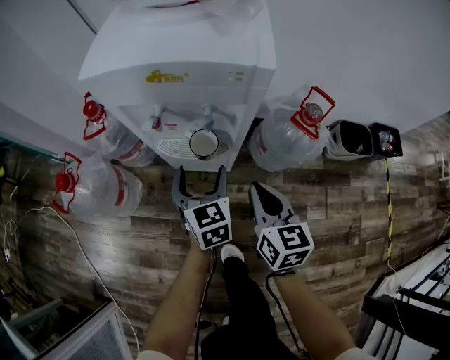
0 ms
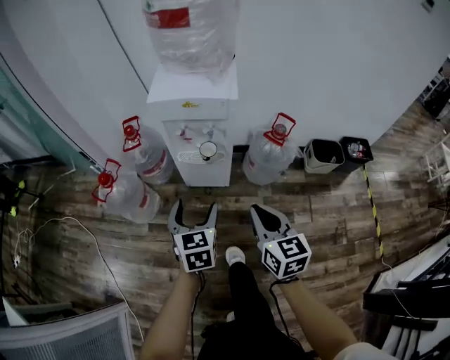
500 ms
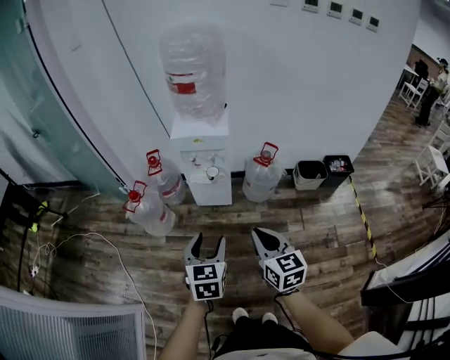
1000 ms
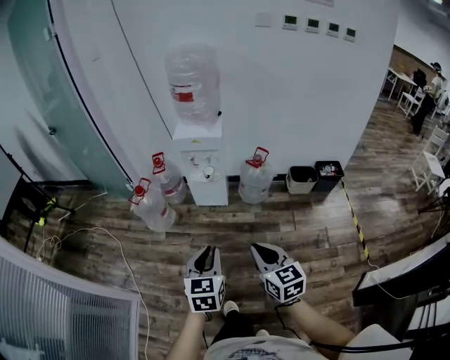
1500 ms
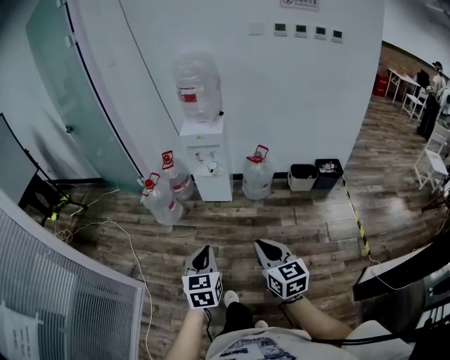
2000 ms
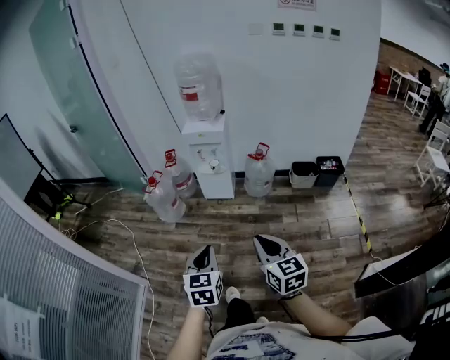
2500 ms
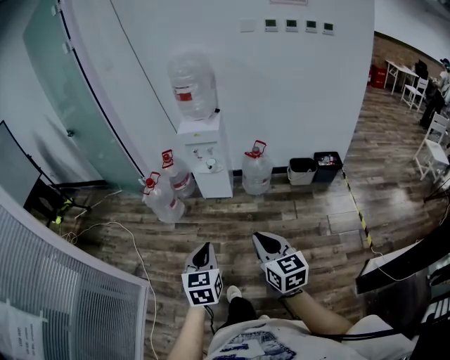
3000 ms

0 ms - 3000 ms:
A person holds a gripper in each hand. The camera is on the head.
0 ms - 1500 ms: The two grippers travel together, backward, approximately 60 cm. The two grippers go roughly 40 cm upward. The left gripper closes up.
1500 ms - 3000 ms: Both grippers move backward, approximately 15 cm.

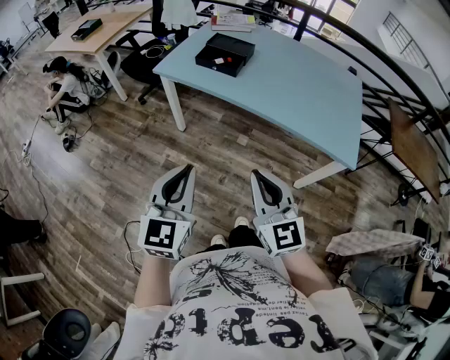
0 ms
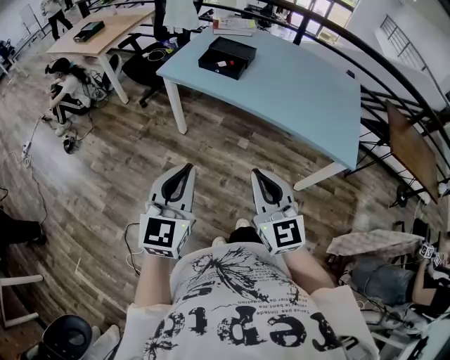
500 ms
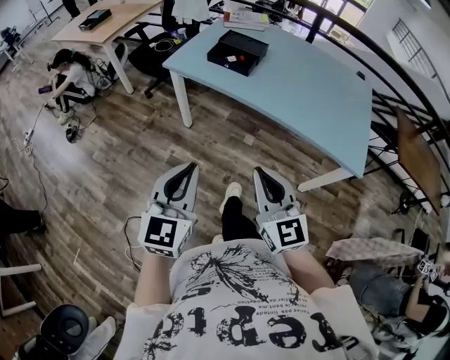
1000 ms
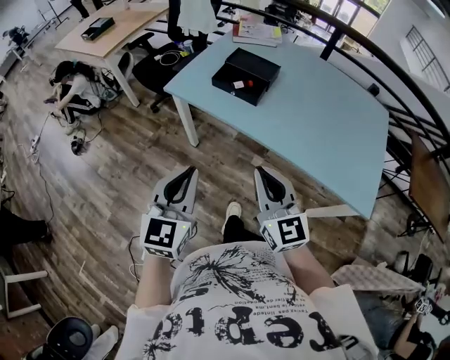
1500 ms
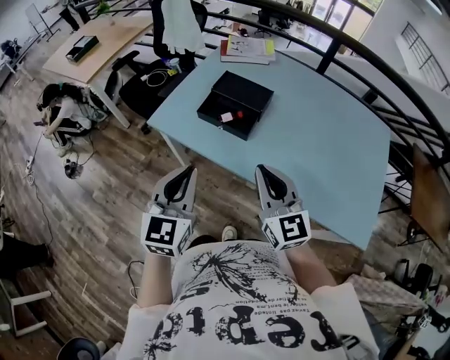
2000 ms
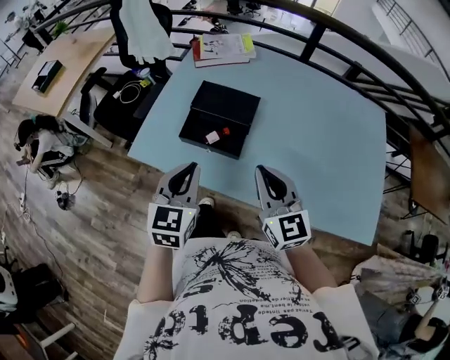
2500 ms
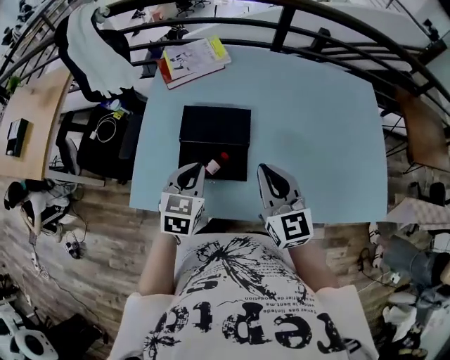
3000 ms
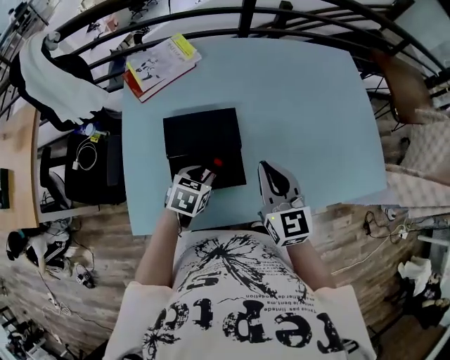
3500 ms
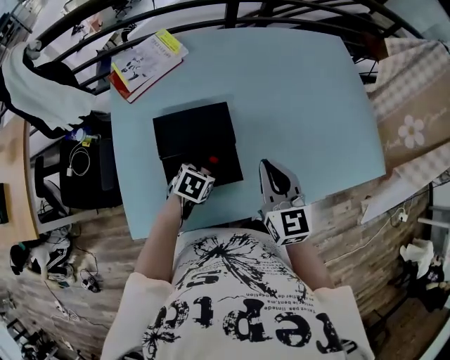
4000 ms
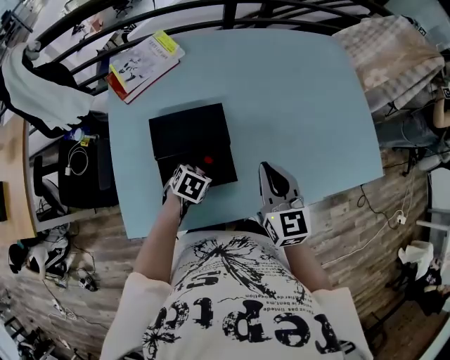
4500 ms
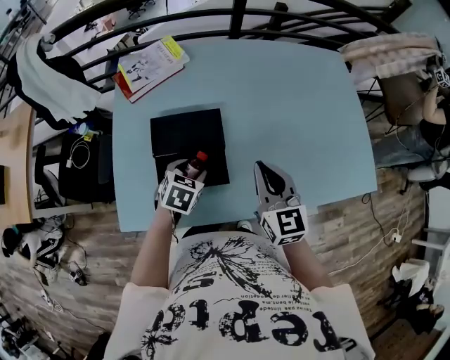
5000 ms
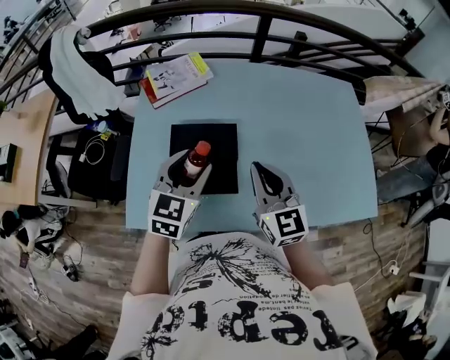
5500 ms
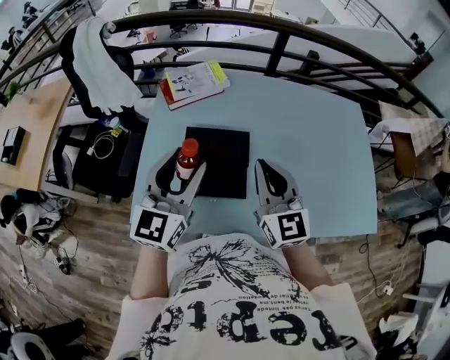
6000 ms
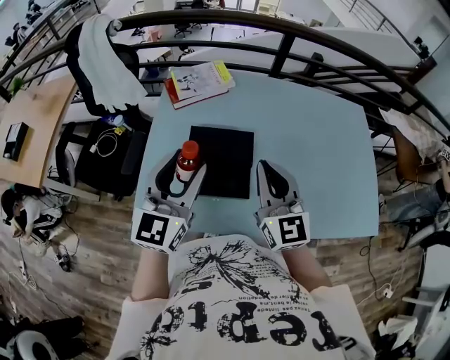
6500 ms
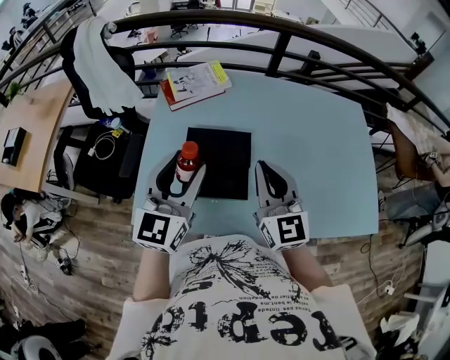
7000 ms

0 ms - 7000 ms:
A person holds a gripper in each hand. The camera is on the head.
0 ms - 2000 ms: The two grippers go about 40 cm forward.
2000 ms - 3500 ms: The left gripper moves some 40 cm, angles its fingers downward, by approximately 40 degrees, and opens up. The right gripper changes place by about 25 cm, and swivels roughly 40 degrees.
3500 ms - 5000 ms: The left gripper travels downward and back again, some 5 cm each way, and opens its fingers.
5000 ms - 7000 ms: The right gripper moves upward and to the left, approximately 15 cm. The left gripper goes approximately 25 cm upward, and tips its fingers upward by approximately 50 degrees.

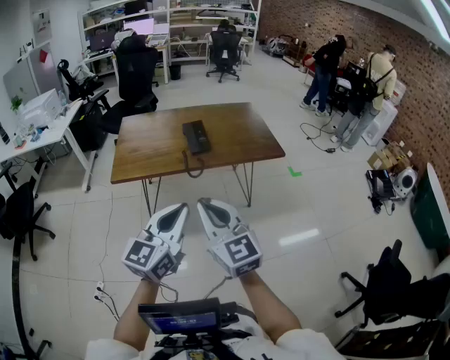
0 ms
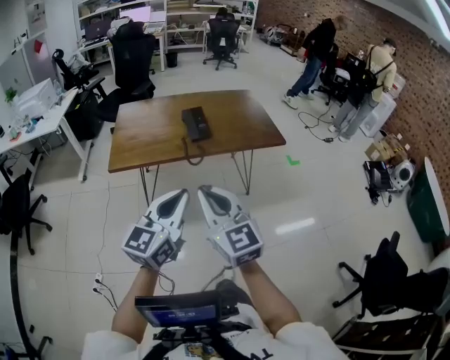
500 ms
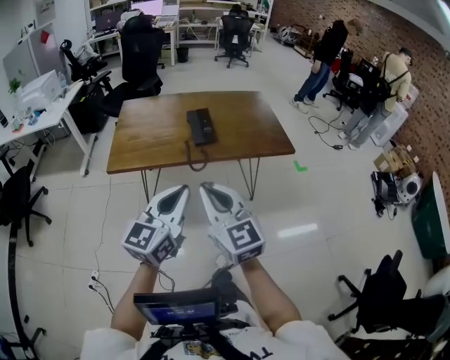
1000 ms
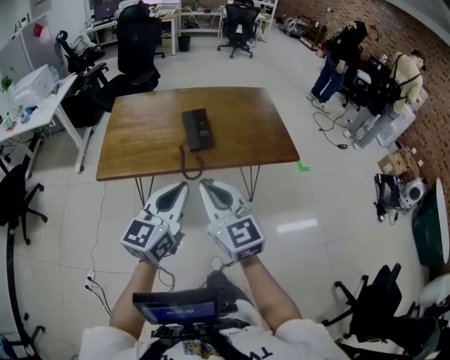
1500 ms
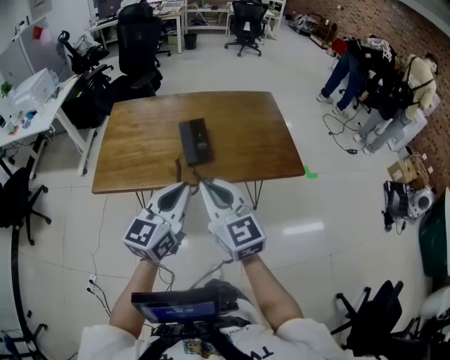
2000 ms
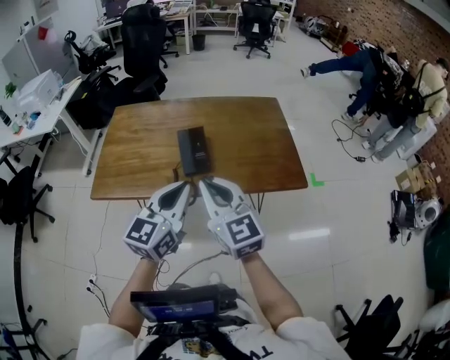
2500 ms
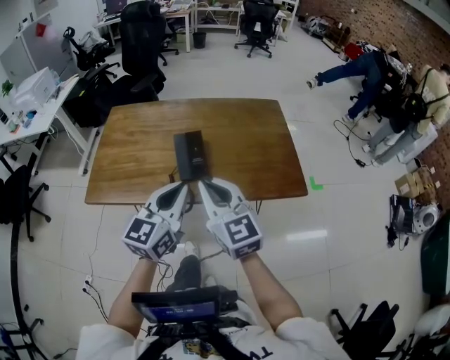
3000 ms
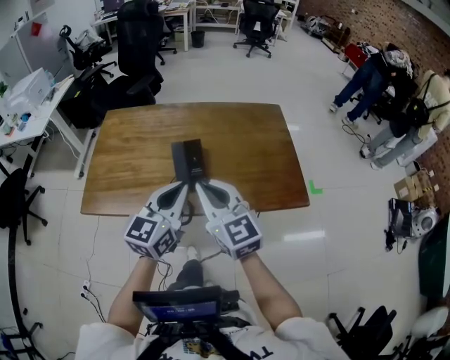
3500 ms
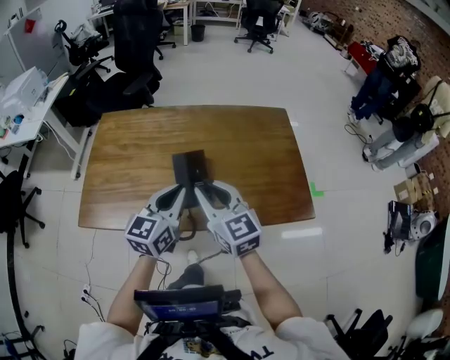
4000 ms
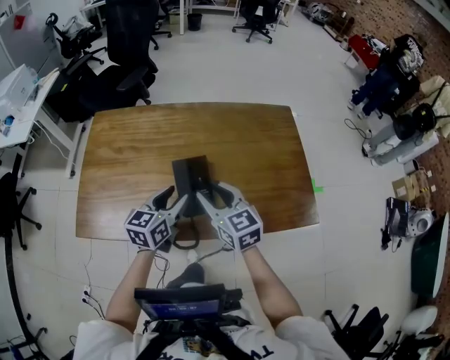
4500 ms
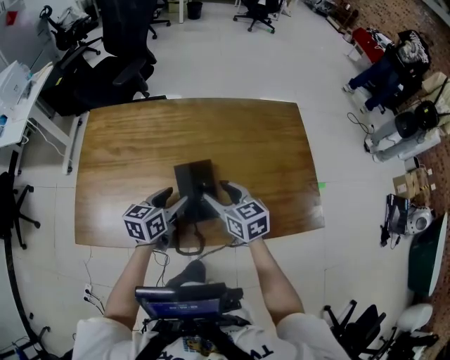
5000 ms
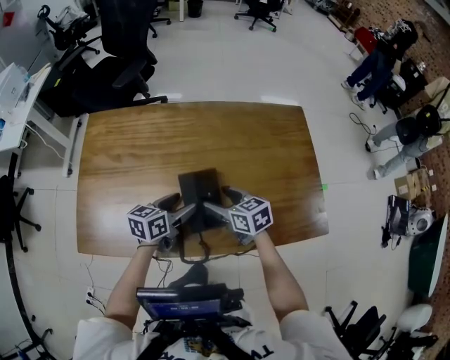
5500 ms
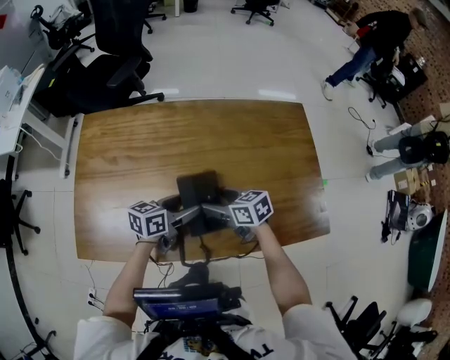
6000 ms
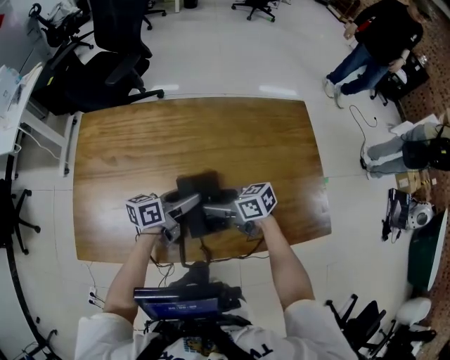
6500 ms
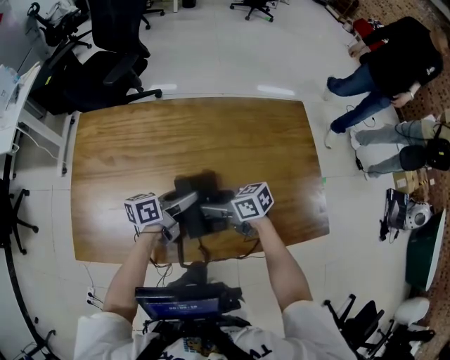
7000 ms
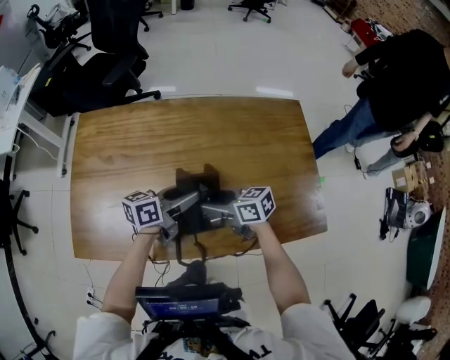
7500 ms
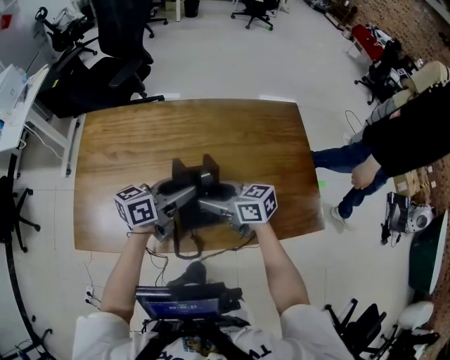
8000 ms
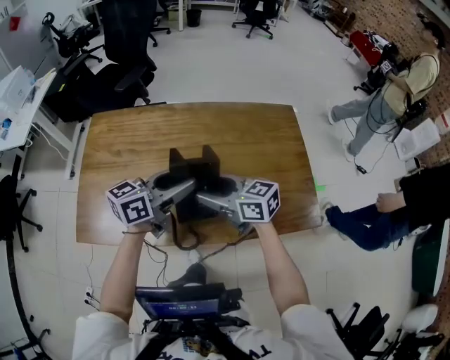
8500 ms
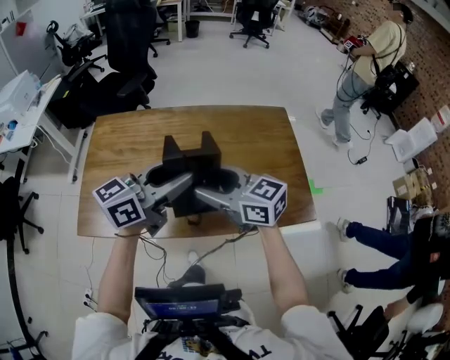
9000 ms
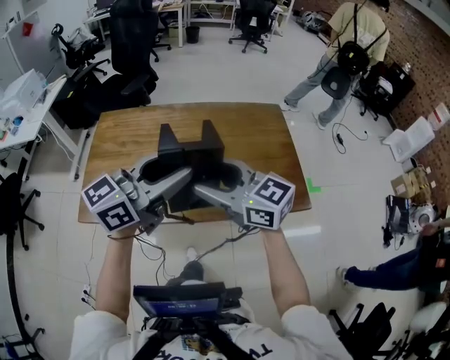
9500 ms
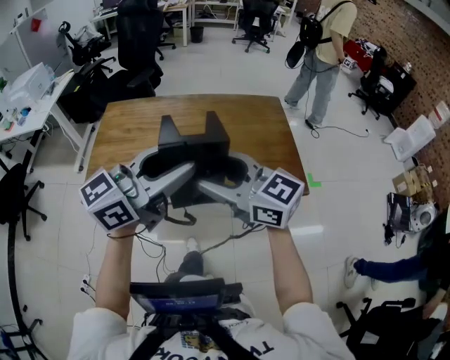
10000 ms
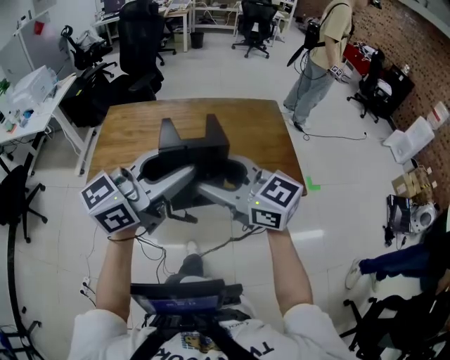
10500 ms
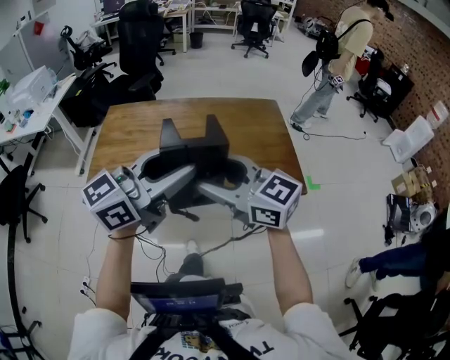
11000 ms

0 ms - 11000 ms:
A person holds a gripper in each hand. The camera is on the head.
0 ms - 2000 ms: Both grippers move forward, approximately 30 cm.
2000 ms - 3500 ms: Both grippers travel together forward, about 15 cm.
3500 ms - 5500 ms: The grippers both shift downward and forward by about 30 cm. The right gripper rotates approximately 40 degrees, and opens up, while the left gripper turns by approximately 40 degrees, and opens its fingers.
5500 ms - 7500 ms: The right gripper swivels roughly 20 degrees. Meanwhile the left gripper shifts by some 5 cm, and closes up.
7500 ms - 9000 ms: The left gripper moves upward and backward, some 25 cm, and swivels some 30 degrees, while the right gripper travels upward by roughly 20 cm, and rotates about 30 degrees.
9000 ms - 11000 ms: The two grippers go roughly 20 cm backward and upward.

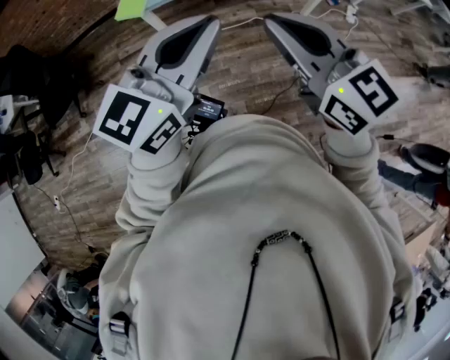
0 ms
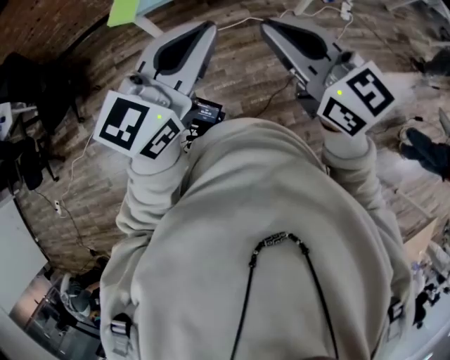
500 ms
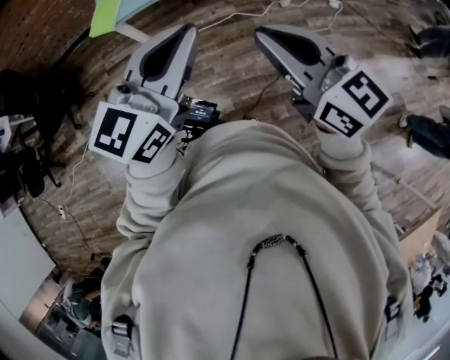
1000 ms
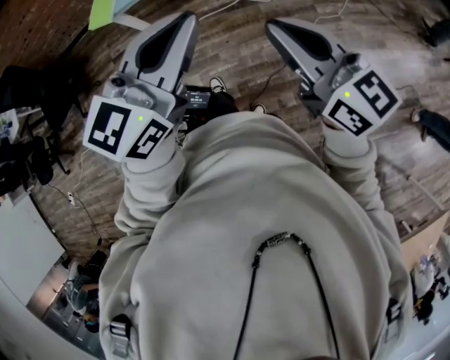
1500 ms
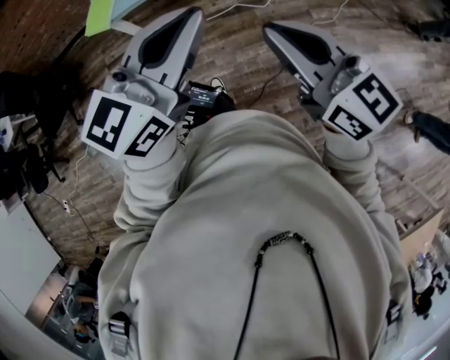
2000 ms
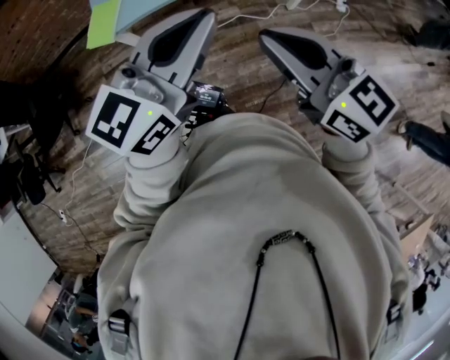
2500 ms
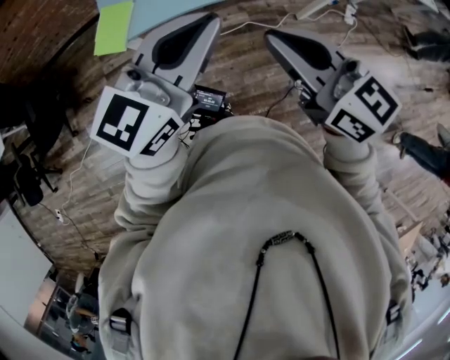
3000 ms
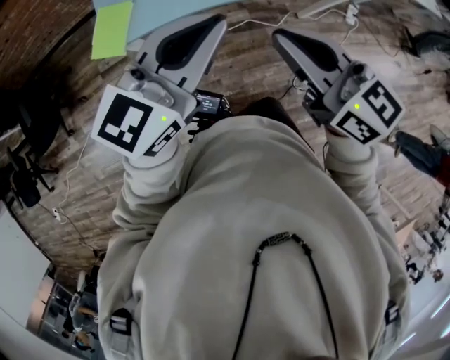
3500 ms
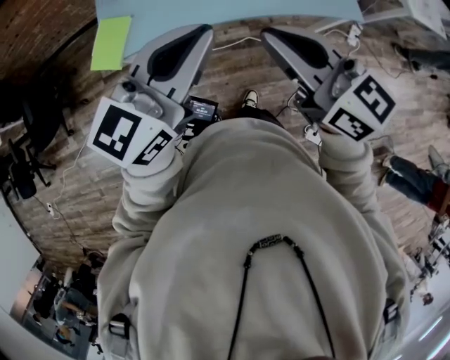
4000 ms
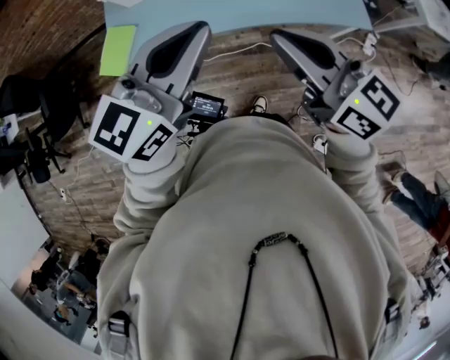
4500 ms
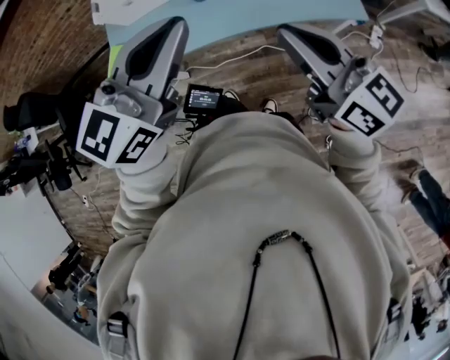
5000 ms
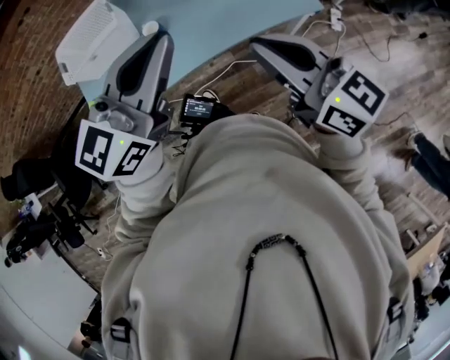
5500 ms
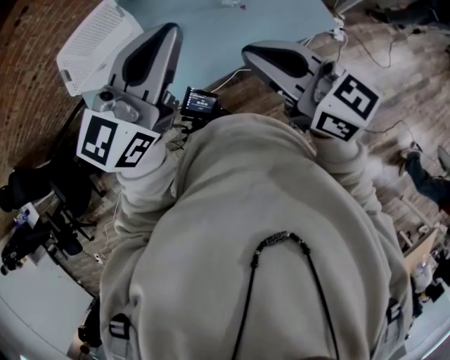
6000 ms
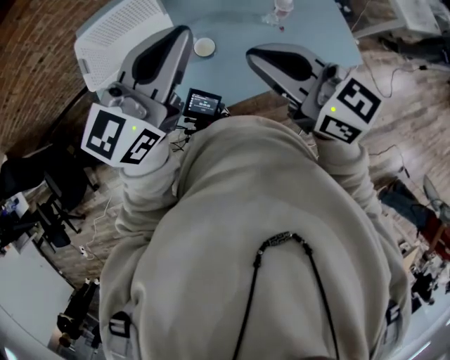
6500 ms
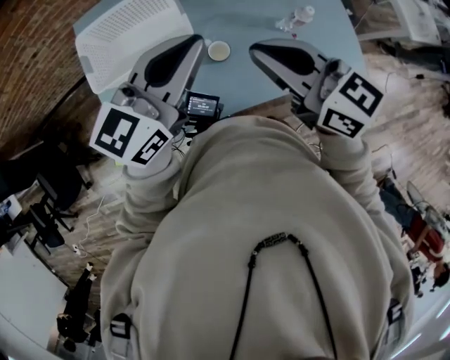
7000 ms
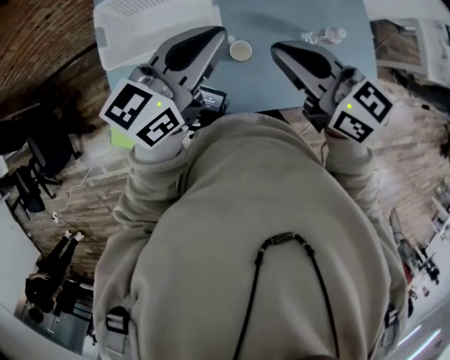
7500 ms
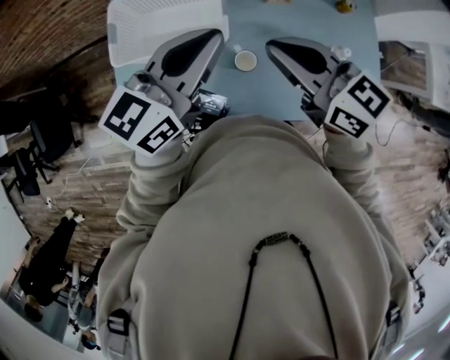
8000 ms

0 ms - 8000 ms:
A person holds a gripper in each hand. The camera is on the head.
0 ms - 2000 ms: Both grippers travel together to the right, some 10 cm.
2000 ms - 4000 ms: The grippers both shift forward by some 30 cm.
4000 ms - 6000 ms: Both grippers move forward and to the right, roughly 20 cm.
6000 ms - 8000 ms: Both grippers move forward and to the left, approximately 25 cm. The right gripper changes its angle by roughly 20 degrees. Meanwhile the left gripper changes its angle by some 20 degrees.
